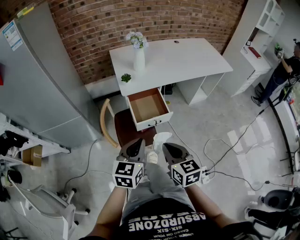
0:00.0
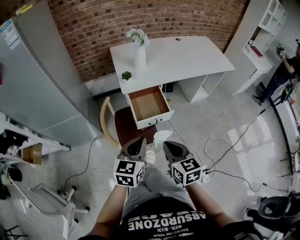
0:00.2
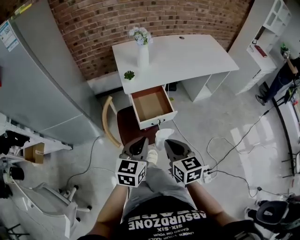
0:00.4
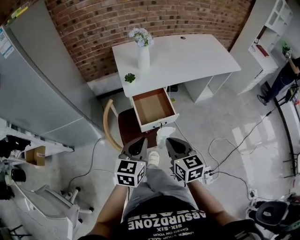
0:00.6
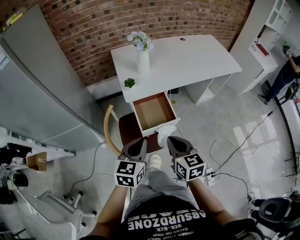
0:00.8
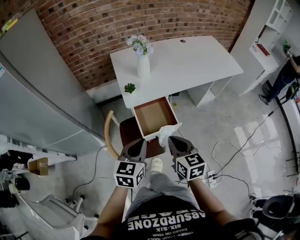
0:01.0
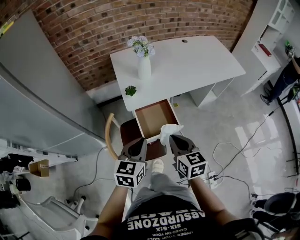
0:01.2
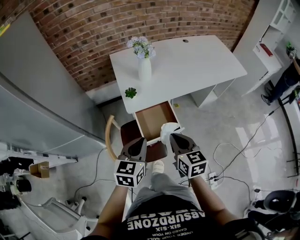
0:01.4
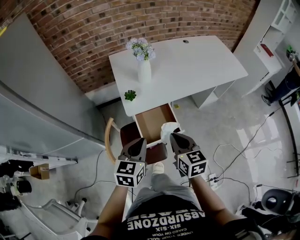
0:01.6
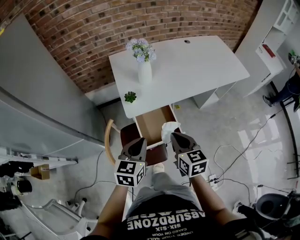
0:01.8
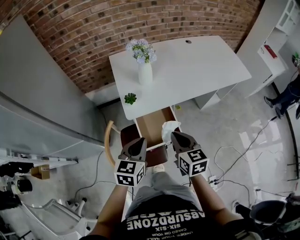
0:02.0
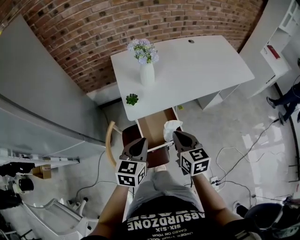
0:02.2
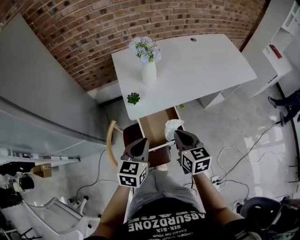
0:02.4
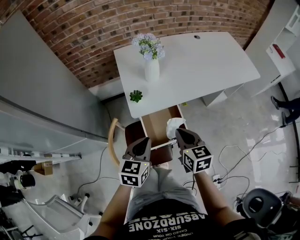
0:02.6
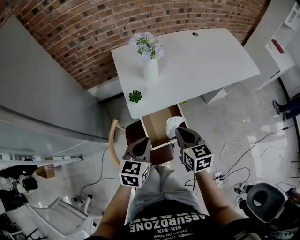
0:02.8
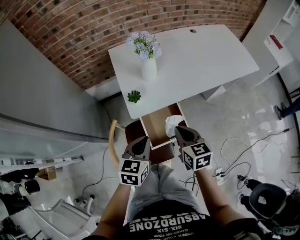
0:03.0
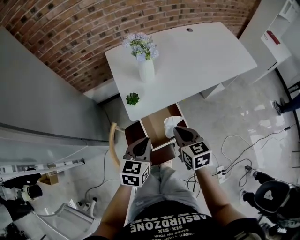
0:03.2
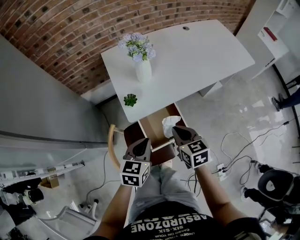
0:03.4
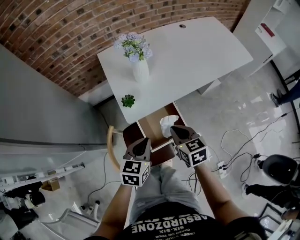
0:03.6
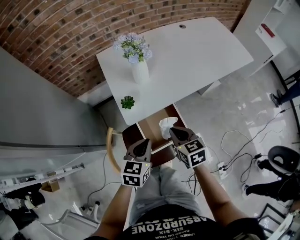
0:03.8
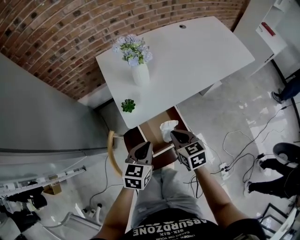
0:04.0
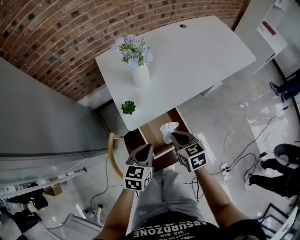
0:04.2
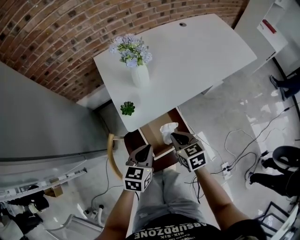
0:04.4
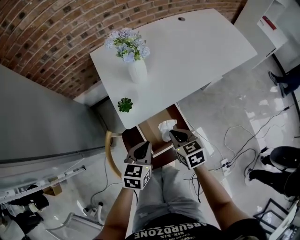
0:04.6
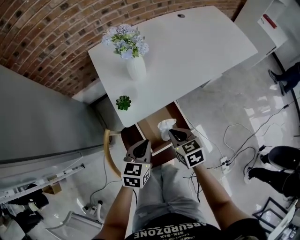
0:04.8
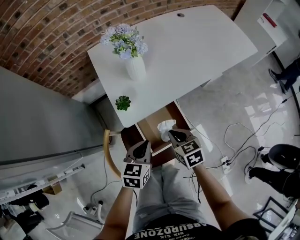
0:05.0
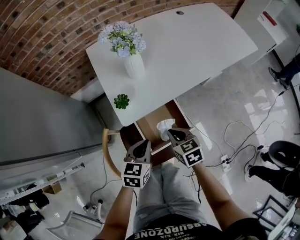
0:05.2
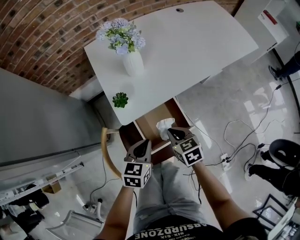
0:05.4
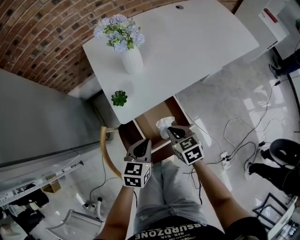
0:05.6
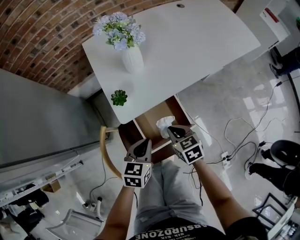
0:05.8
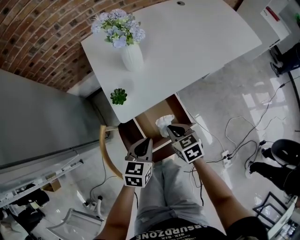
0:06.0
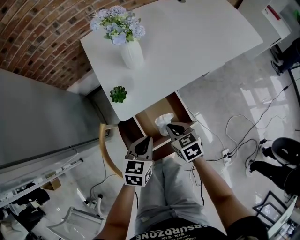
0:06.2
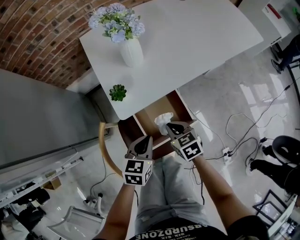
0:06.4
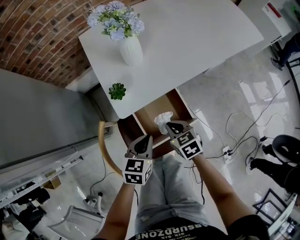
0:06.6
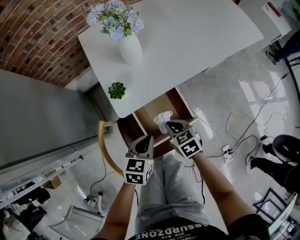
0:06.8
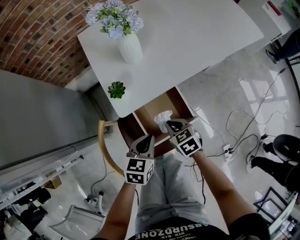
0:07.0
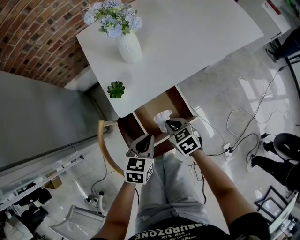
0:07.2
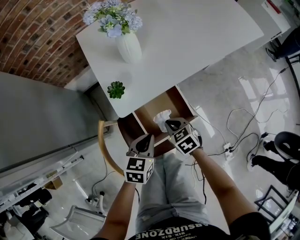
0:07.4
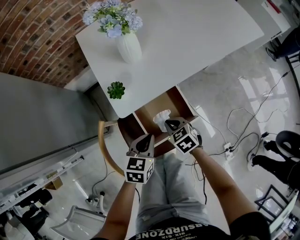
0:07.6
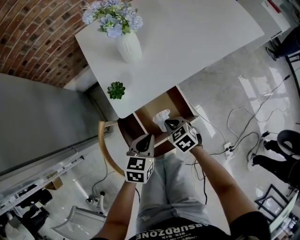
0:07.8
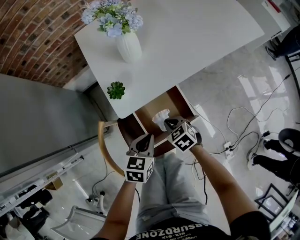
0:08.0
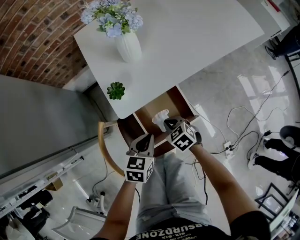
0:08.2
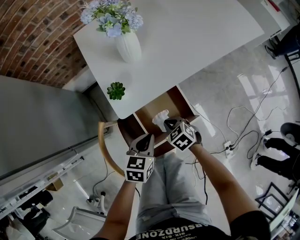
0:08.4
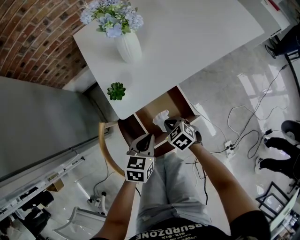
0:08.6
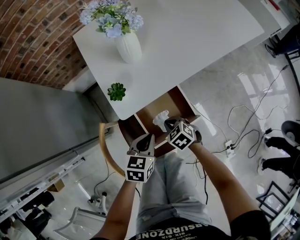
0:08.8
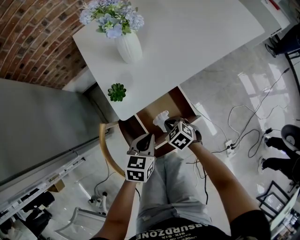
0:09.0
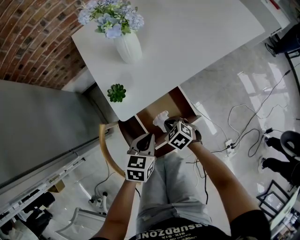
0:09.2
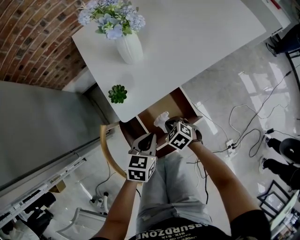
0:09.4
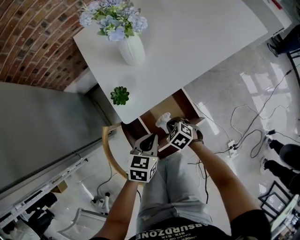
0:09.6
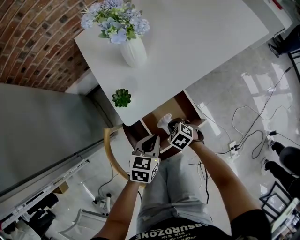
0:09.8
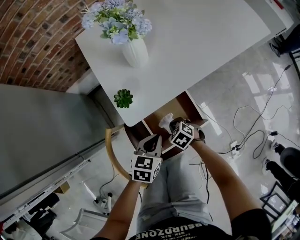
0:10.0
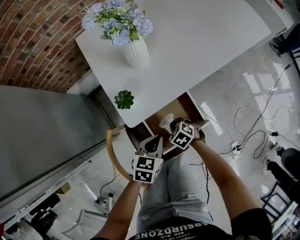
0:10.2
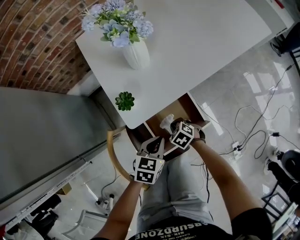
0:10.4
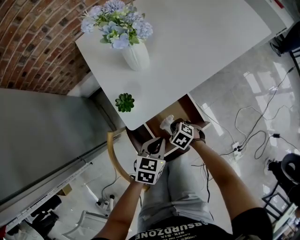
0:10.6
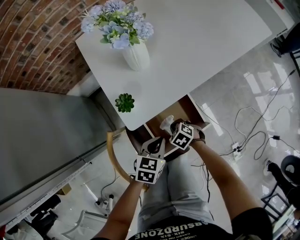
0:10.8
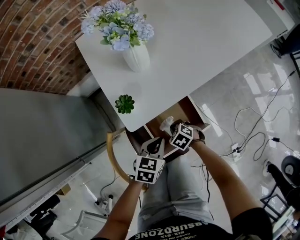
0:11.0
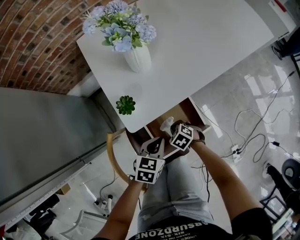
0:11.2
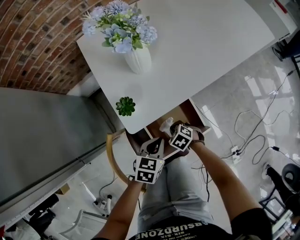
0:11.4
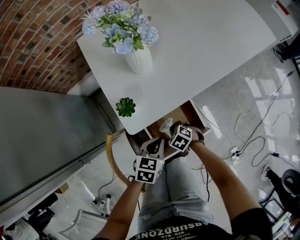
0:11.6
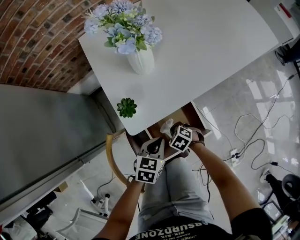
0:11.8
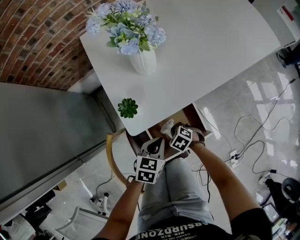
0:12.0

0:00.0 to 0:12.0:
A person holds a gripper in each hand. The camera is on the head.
0:00.0 to 0:01.6: Both grippers travel together forward, about 25 cm.
0:01.6 to 0:03.0: Both grippers move forward, about 10 cm.
0:03.0 to 0:04.4: Both grippers travel together downward, roughly 10 cm.
0:04.4 to 0:06.0: Both grippers move downward, about 10 cm.
0:06.0 to 0:07.6: The right gripper heads downward, covering roughly 5 cm.
0:07.6 to 0:09.0: The right gripper travels downward by about 5 cm.
0:09.0 to 0:10.4: The right gripper travels downward by roughly 5 cm.
0:10.4 to 0:12.0: The grippers make only small movements.

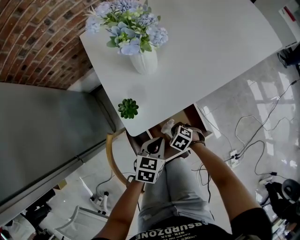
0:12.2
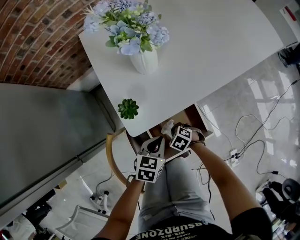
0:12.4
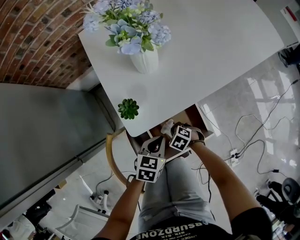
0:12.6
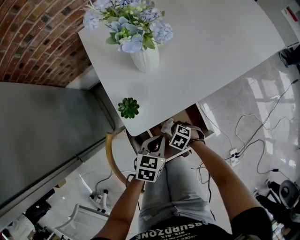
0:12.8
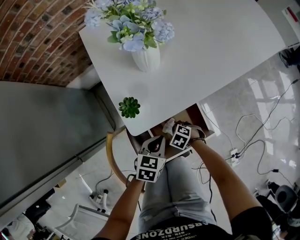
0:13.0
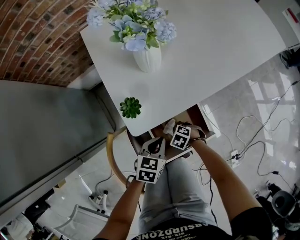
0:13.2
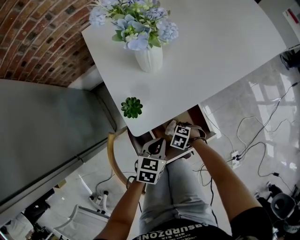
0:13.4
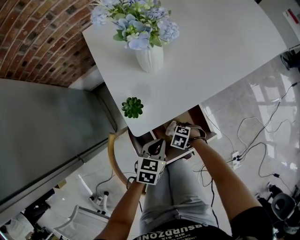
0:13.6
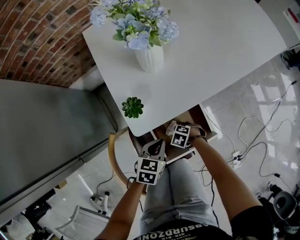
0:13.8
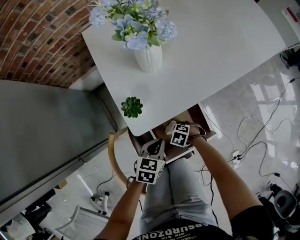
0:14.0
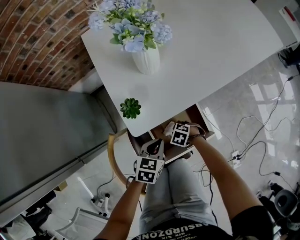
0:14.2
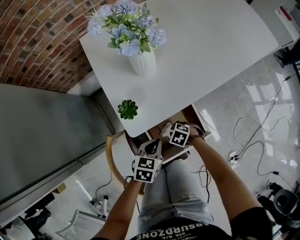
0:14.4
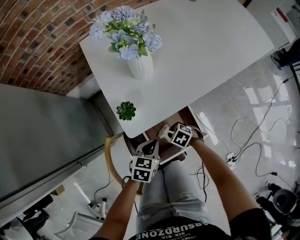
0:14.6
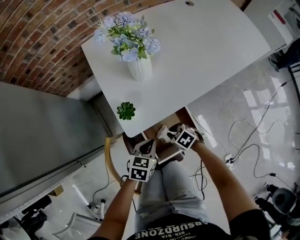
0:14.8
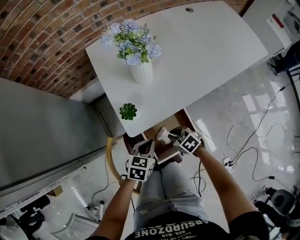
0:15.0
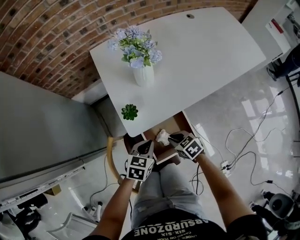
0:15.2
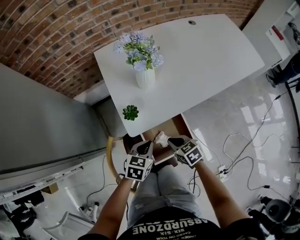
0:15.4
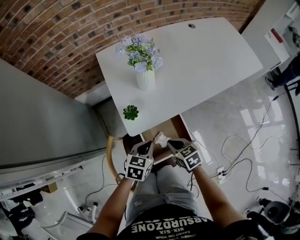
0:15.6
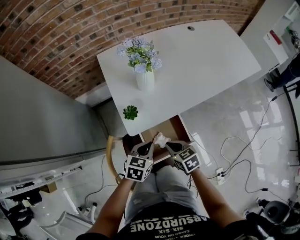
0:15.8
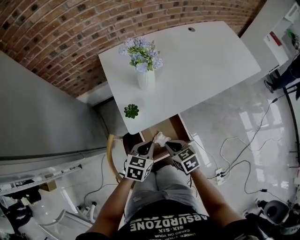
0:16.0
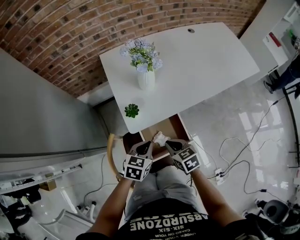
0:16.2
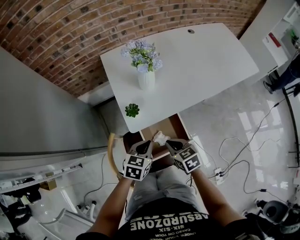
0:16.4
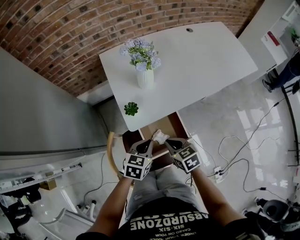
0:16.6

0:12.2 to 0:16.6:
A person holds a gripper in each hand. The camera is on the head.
0:12.2 to 0:13.6: The right gripper travels downward by some 5 cm.
0:13.6 to 0:15.2: The right gripper goes about 20 cm upward, and swivels roughly 40 degrees, while the left gripper shifts roughly 10 cm upward.
0:15.2 to 0:16.6: The two grippers go about 10 cm upward.

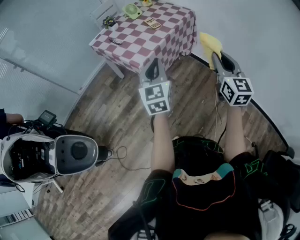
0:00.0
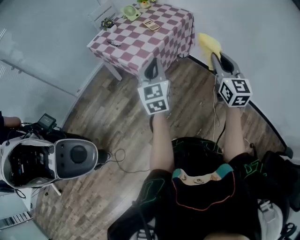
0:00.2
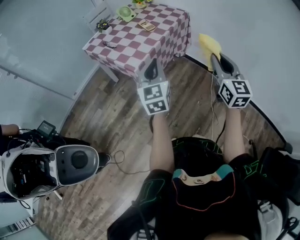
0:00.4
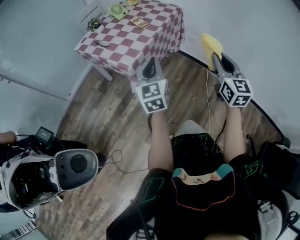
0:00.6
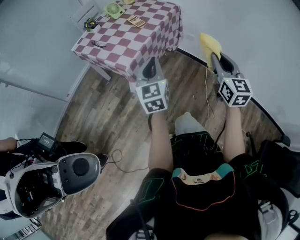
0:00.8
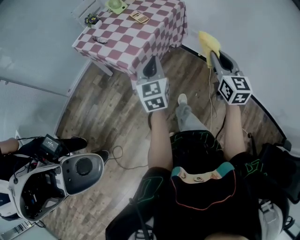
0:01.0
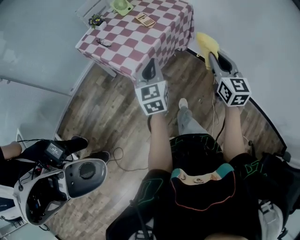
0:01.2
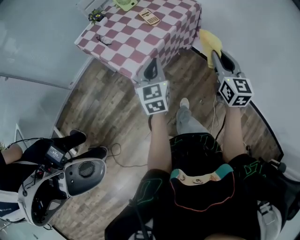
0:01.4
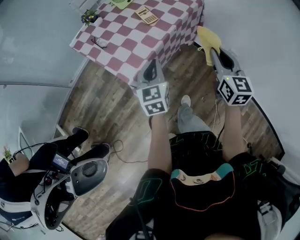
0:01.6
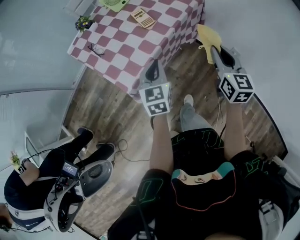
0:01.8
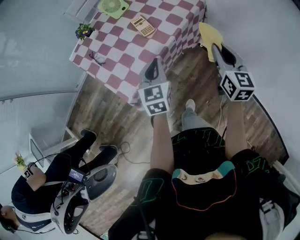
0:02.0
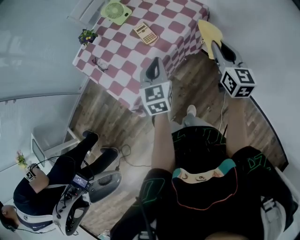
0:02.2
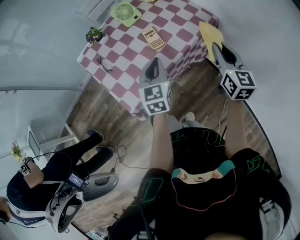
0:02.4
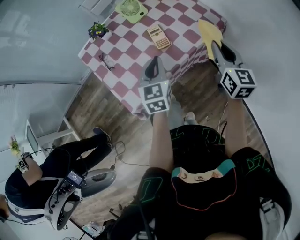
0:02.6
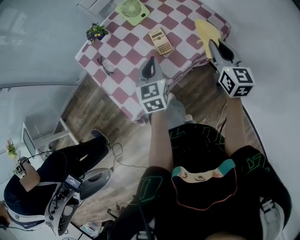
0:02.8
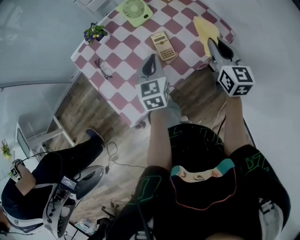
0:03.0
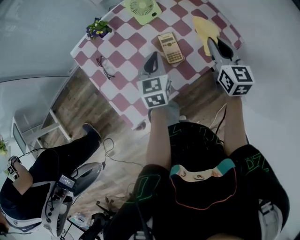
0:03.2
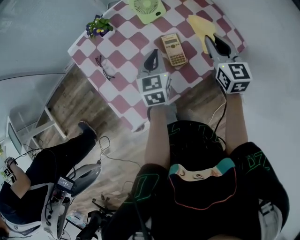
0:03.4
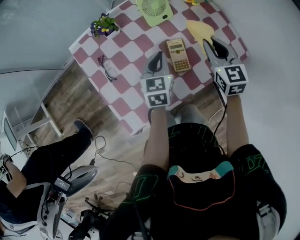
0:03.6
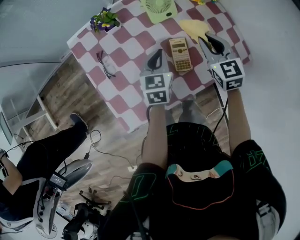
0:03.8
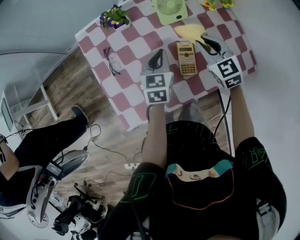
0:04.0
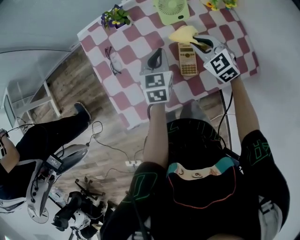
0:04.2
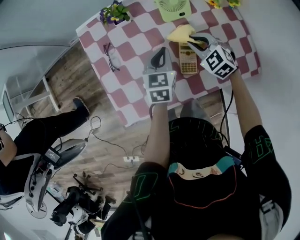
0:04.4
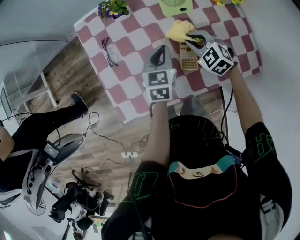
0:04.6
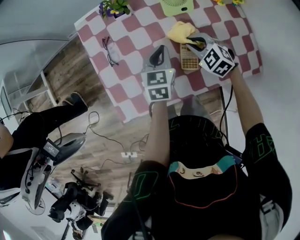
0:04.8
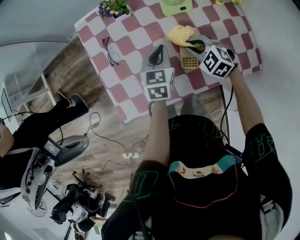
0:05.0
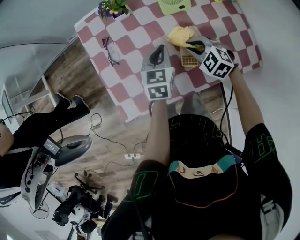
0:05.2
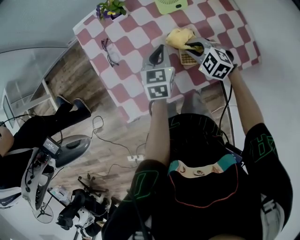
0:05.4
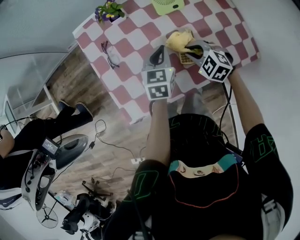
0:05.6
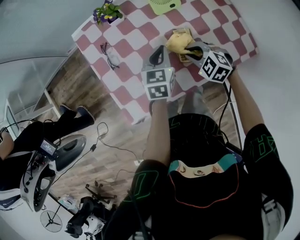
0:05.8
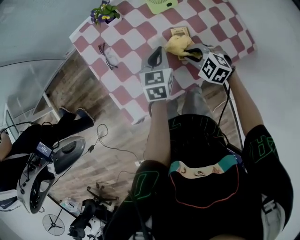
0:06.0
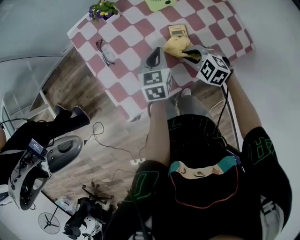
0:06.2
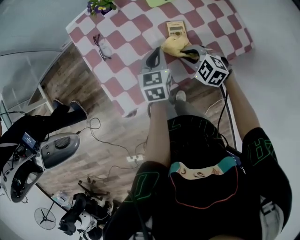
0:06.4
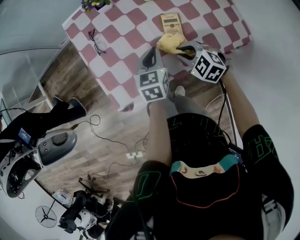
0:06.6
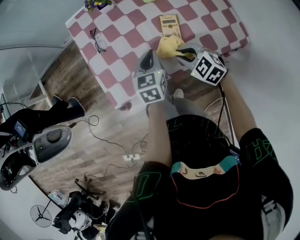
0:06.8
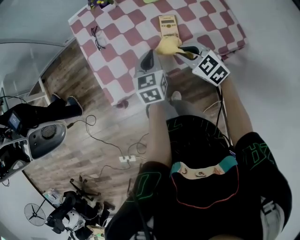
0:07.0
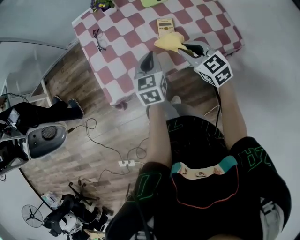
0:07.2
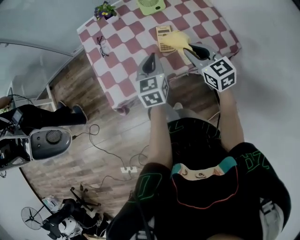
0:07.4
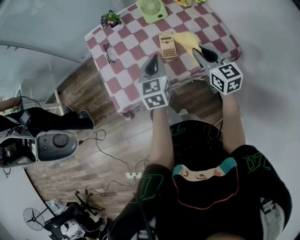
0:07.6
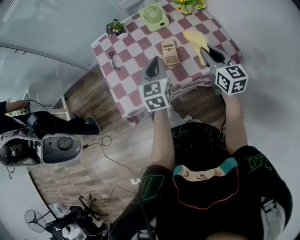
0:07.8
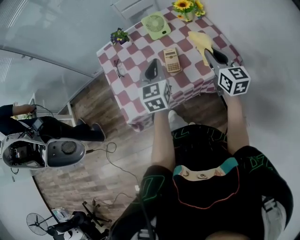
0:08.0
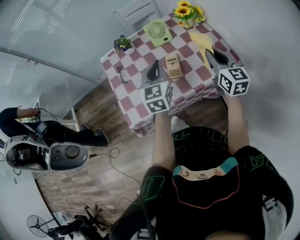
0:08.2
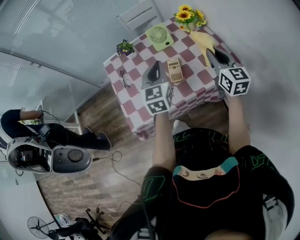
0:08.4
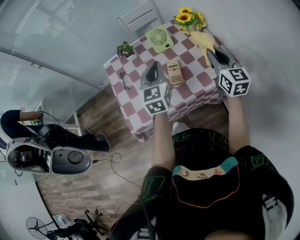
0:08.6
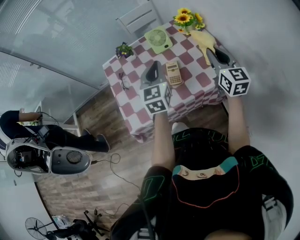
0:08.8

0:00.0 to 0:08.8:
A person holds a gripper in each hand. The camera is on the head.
0:00.0 to 0:01.4: The left gripper shifts some 20 cm forward and downward. Meanwhile the right gripper shifts some 15 cm forward.
0:01.4 to 0:03.0: Both grippers travel together forward, about 35 cm.
0:03.0 to 0:04.4: The left gripper moves roughly 10 cm; the right gripper ends up about 25 cm from where it was, and tips its fingers downward by about 30 degrees.
0:04.4 to 0:05.8: The right gripper shifts about 10 cm backward.
0:05.8 to 0:07.4: The left gripper travels backward and upward by about 15 cm, while the right gripper shifts approximately 15 cm upward and backward, and swivels roughly 40 degrees.
0:07.4 to 0:08.8: The left gripper moves upward and forward, about 15 cm, while the right gripper moves to the right and upward, roughly 15 cm, and changes its angle by some 30 degrees.
